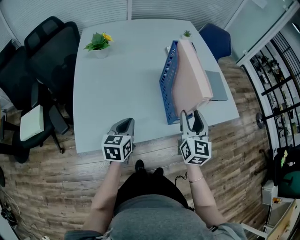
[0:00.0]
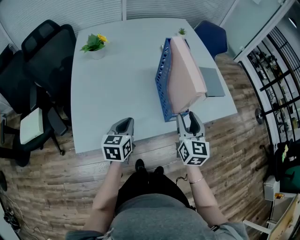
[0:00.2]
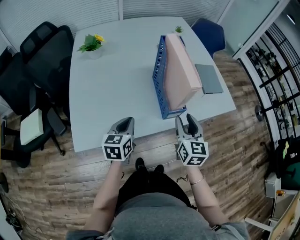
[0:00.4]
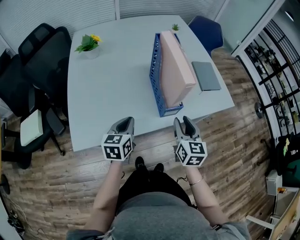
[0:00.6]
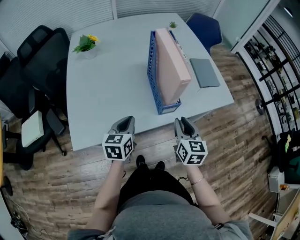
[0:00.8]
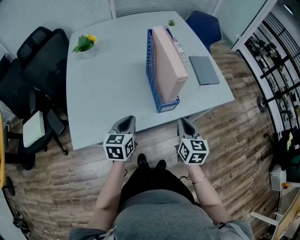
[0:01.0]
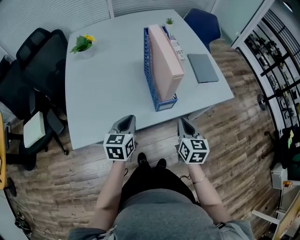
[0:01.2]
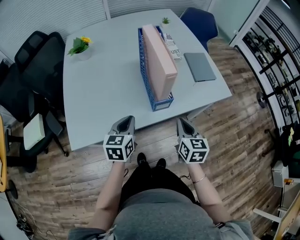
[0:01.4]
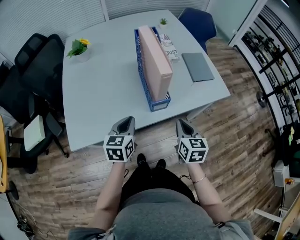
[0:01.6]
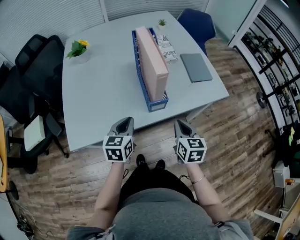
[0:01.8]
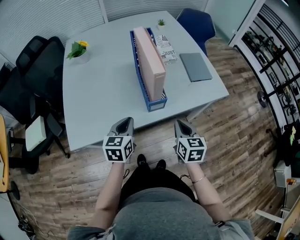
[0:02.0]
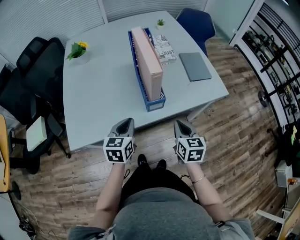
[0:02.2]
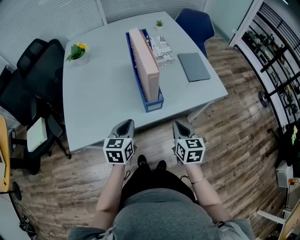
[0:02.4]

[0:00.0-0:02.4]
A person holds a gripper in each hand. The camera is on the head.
0:00.0 to 0:01.2: The left gripper moves to the right, roughly 5 cm. The right gripper shifts approximately 10 cm downward, backward and to the right, and closes.
0:01.2 to 0:02.4: There are only small adjustments of the grippers.

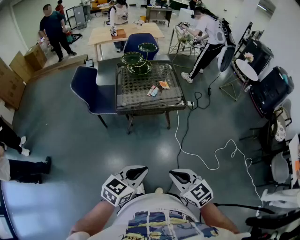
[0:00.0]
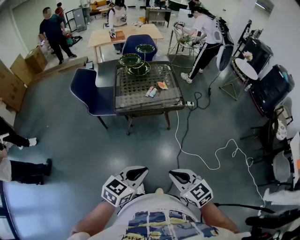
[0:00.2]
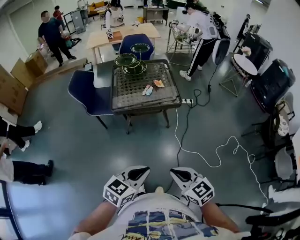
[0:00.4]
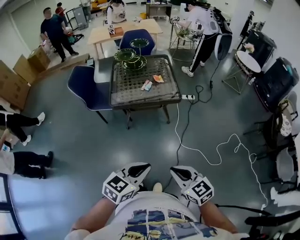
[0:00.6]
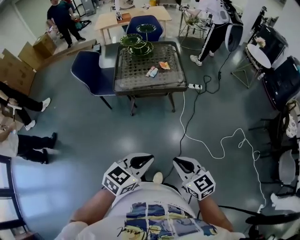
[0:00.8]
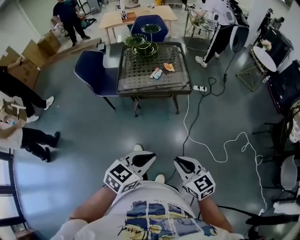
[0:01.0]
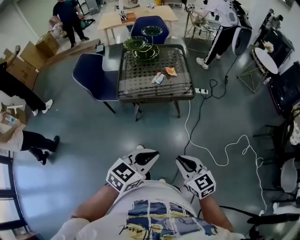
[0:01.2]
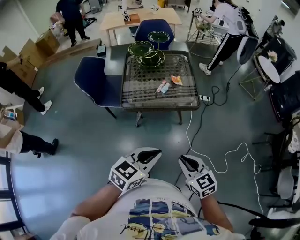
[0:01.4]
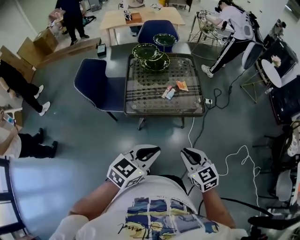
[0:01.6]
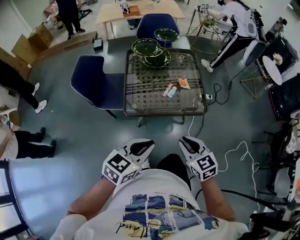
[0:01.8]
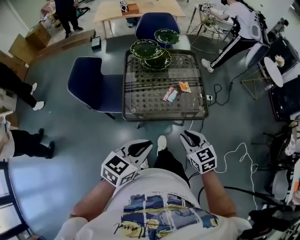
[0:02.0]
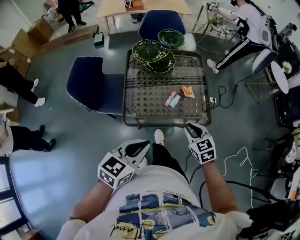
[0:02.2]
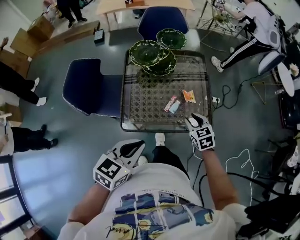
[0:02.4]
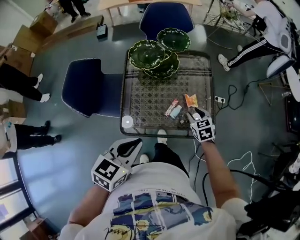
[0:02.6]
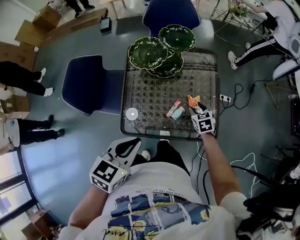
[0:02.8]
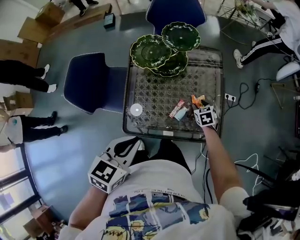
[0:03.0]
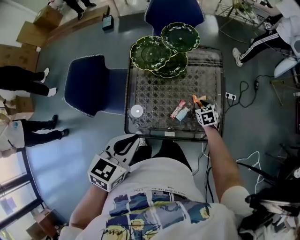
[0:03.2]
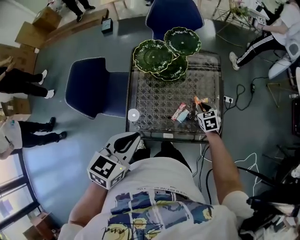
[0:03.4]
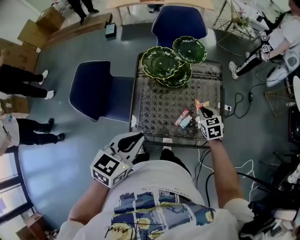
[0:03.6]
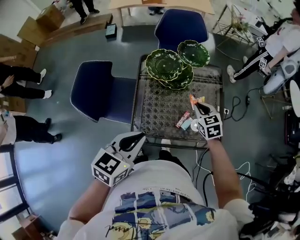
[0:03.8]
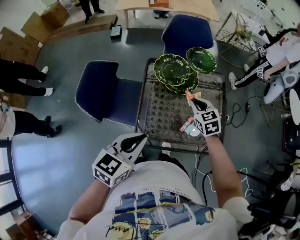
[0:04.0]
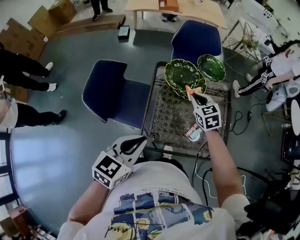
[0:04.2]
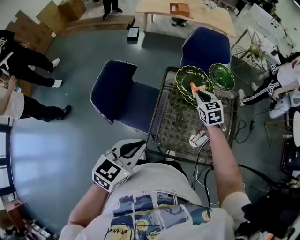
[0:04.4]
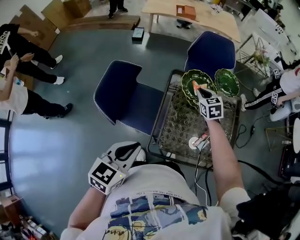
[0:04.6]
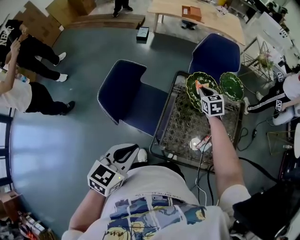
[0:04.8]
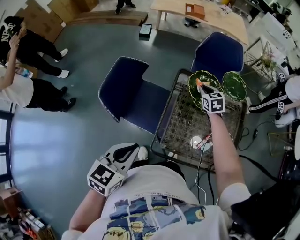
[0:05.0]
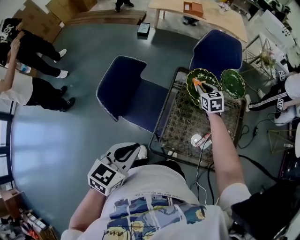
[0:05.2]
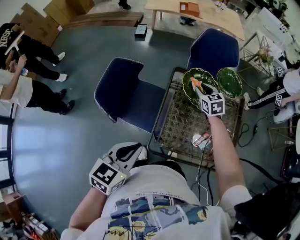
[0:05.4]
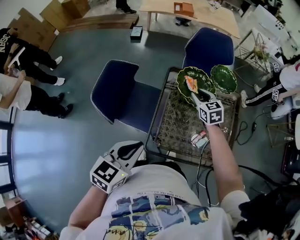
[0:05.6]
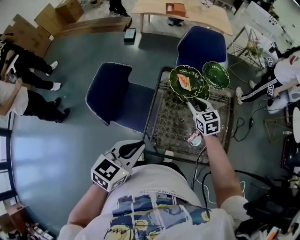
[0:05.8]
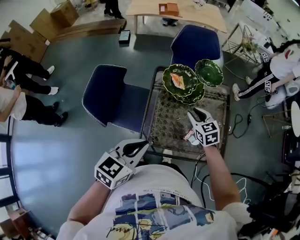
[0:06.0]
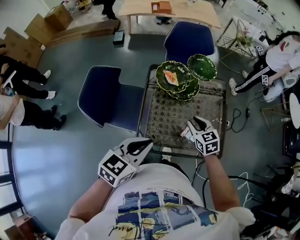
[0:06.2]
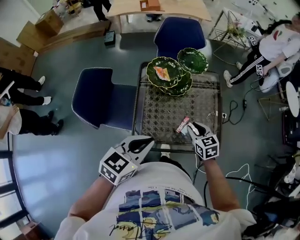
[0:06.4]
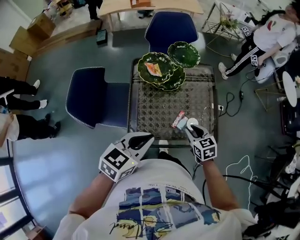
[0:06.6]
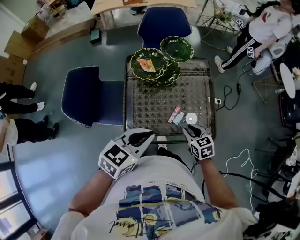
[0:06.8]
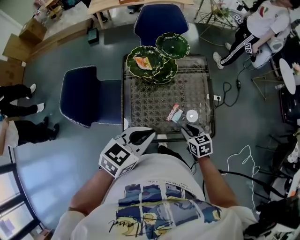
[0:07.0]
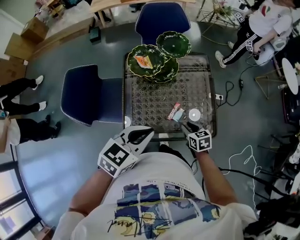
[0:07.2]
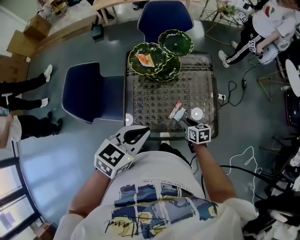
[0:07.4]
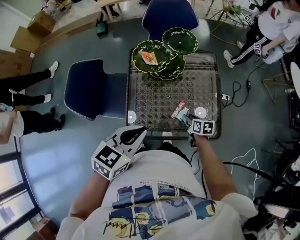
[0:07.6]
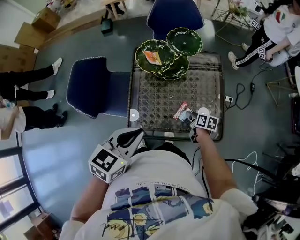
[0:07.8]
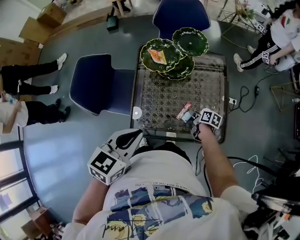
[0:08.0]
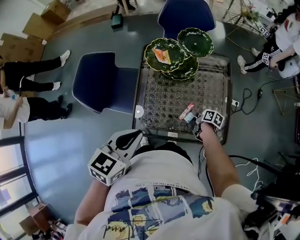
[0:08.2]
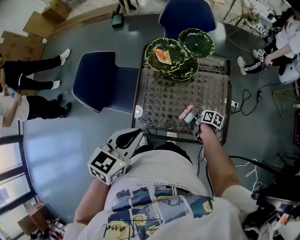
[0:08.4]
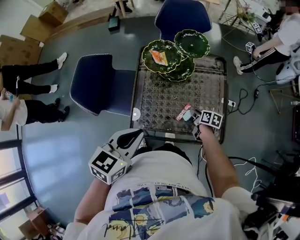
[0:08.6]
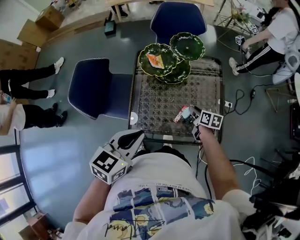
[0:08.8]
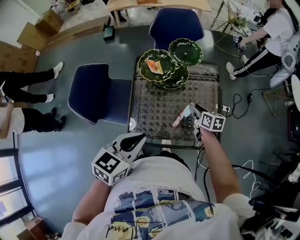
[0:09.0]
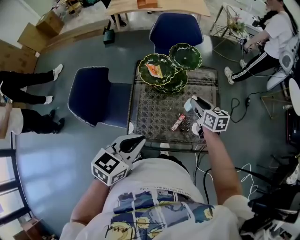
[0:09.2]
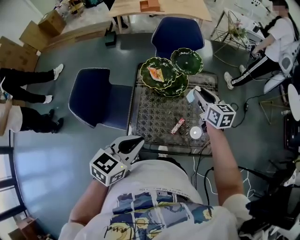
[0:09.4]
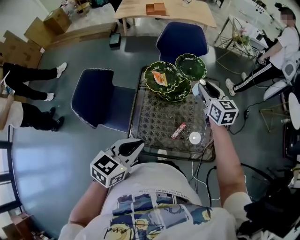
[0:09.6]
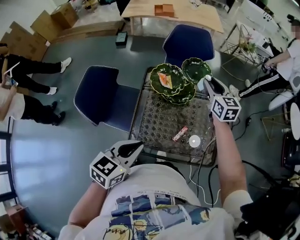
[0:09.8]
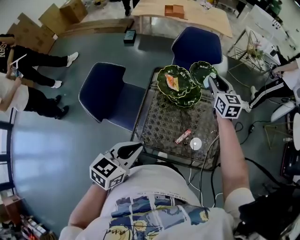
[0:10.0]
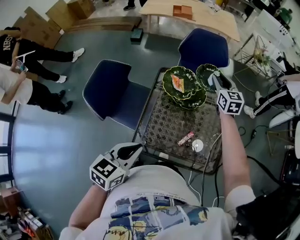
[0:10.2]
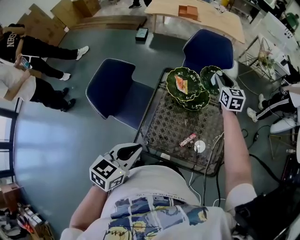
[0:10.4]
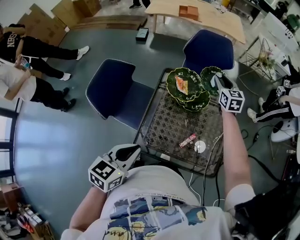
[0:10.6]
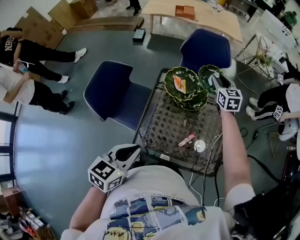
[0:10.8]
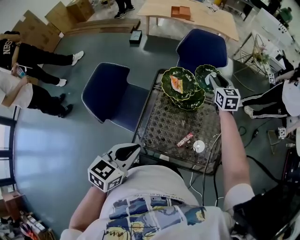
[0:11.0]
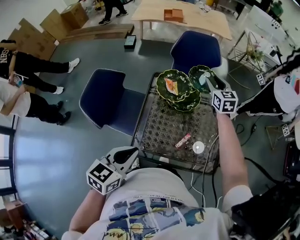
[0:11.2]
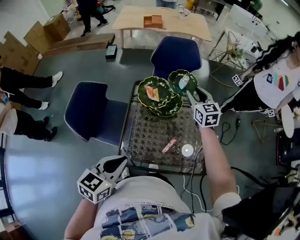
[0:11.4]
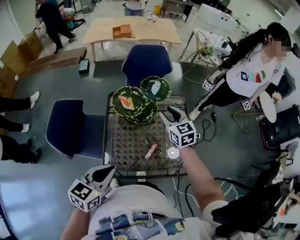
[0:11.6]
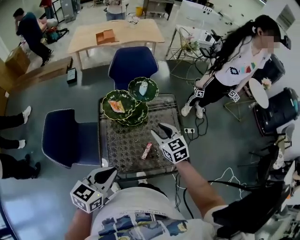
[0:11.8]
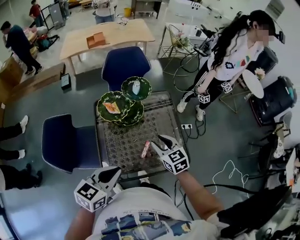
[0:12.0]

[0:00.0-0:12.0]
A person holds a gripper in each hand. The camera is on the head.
0:00.0 to 0:01.6: The grippers both shift forward by about 25 cm.
0:01.6 to 0:03.0: The right gripper goes approximately 60 cm forward and downward, changes its angle by some 30 degrees, and opens. Meanwhile the left gripper goes about 35 cm forward, and changes its angle by about 30 degrees.
0:03.0 to 0:04.4: The right gripper goes approximately 35 cm to the left and upward, changes its angle by approximately 20 degrees, and closes; the left gripper travels to the left by approximately 20 cm.
0:04.4 to 0:06.0: The right gripper goes roughly 10 cm backward and to the right. Meanwhile the left gripper moves to the right, approximately 5 cm.
0:06.0 to 0:07.6: The left gripper shifts approximately 10 cm to the right. The right gripper goes some 25 cm downward, to the right and backward, and rotates around the line of its fingers by about 40 degrees, clockwise from behind.
0:07.6 to 0:09.0: The right gripper goes approximately 15 cm forward and upward.
0:09.0 to 0:10.4: The left gripper travels to the left by approximately 5 cm; the right gripper shifts some 30 cm forward and upward, and changes its angle by some 40 degrees.
0:10.4 to 0:12.0: The left gripper travels to the right by some 5 cm, and swivels approximately 30 degrees, while the right gripper moves backward, about 30 cm.

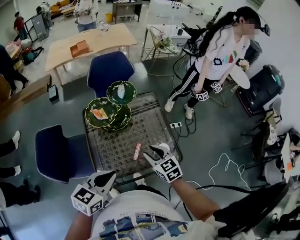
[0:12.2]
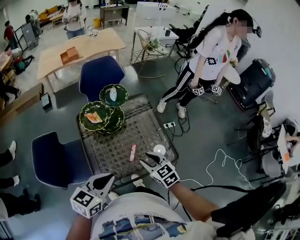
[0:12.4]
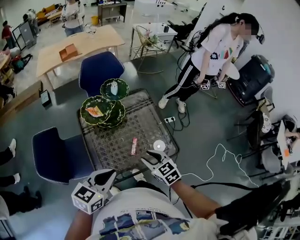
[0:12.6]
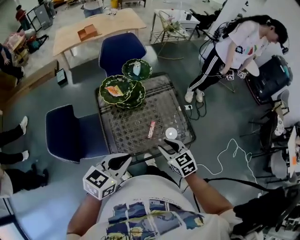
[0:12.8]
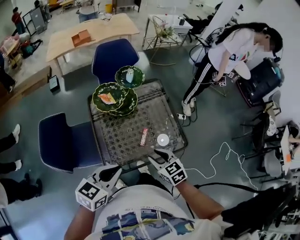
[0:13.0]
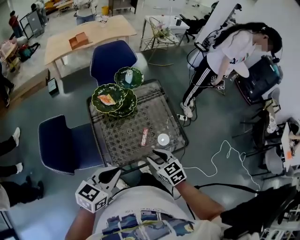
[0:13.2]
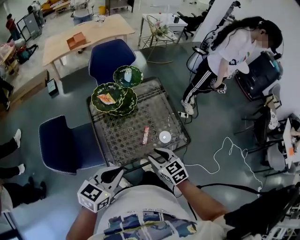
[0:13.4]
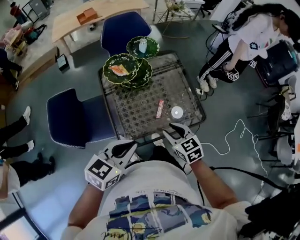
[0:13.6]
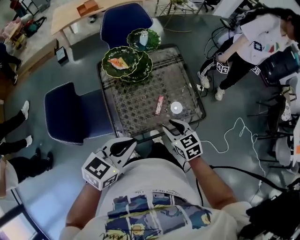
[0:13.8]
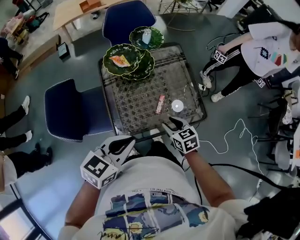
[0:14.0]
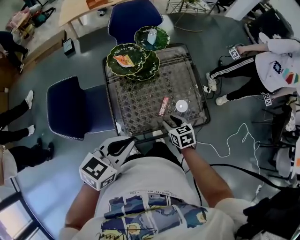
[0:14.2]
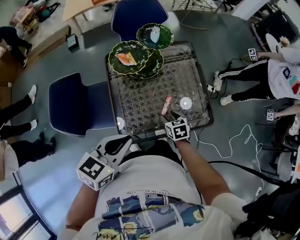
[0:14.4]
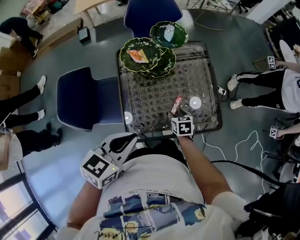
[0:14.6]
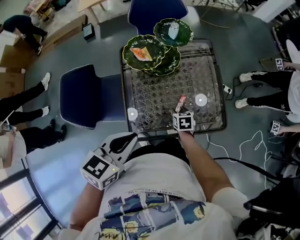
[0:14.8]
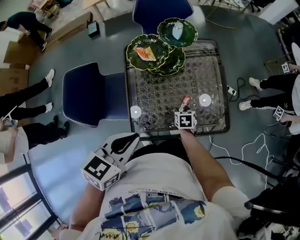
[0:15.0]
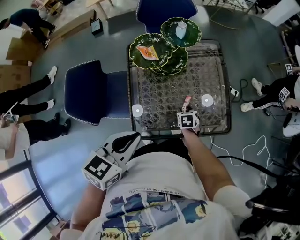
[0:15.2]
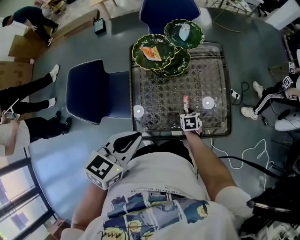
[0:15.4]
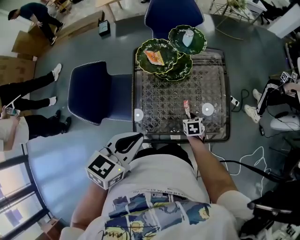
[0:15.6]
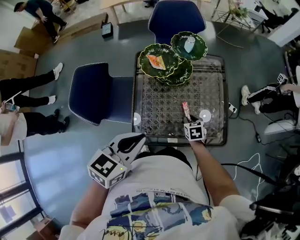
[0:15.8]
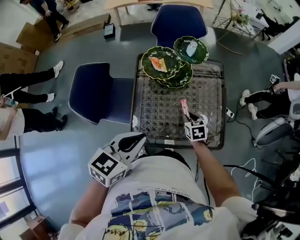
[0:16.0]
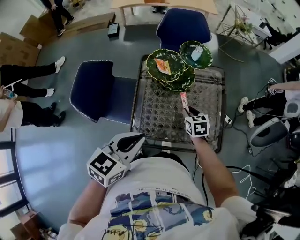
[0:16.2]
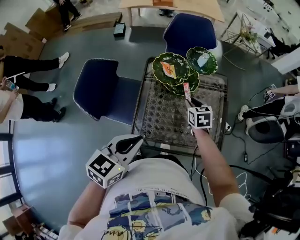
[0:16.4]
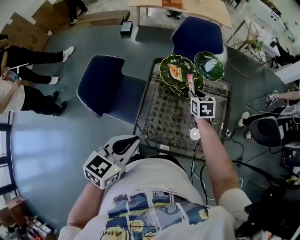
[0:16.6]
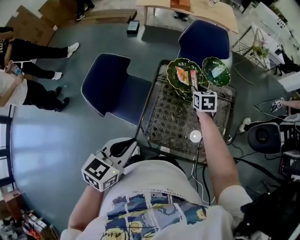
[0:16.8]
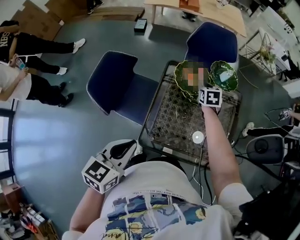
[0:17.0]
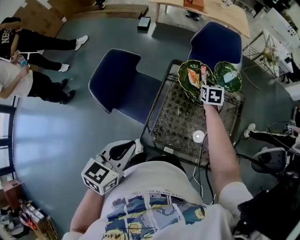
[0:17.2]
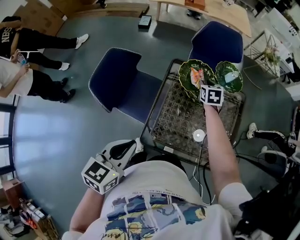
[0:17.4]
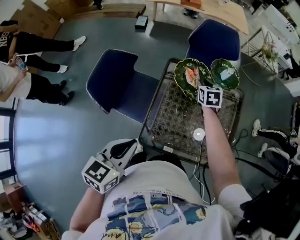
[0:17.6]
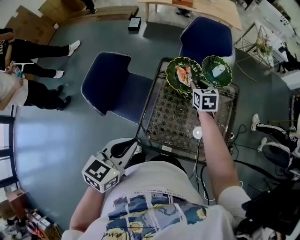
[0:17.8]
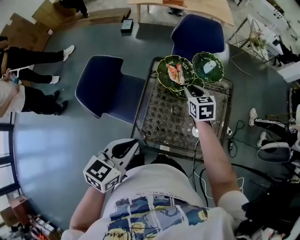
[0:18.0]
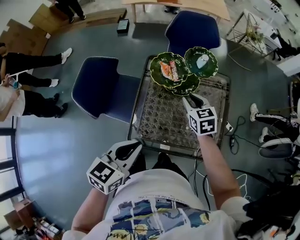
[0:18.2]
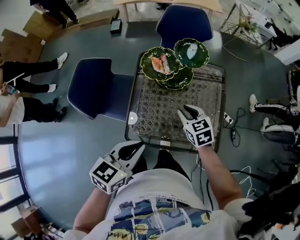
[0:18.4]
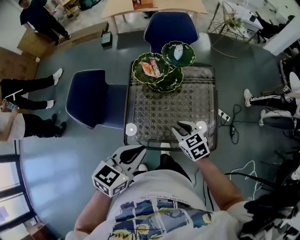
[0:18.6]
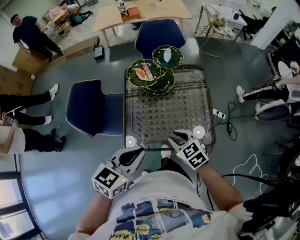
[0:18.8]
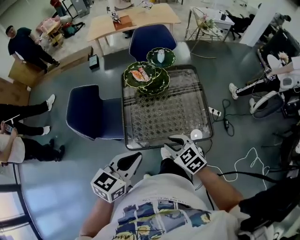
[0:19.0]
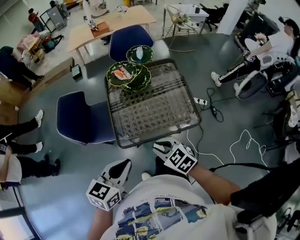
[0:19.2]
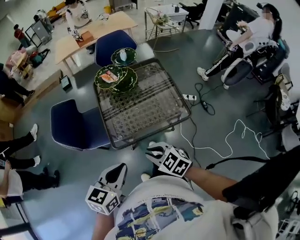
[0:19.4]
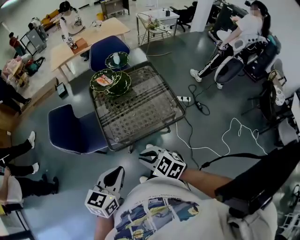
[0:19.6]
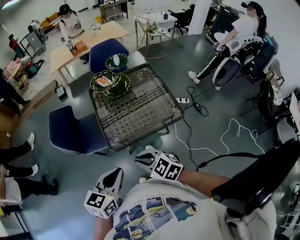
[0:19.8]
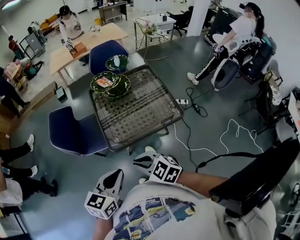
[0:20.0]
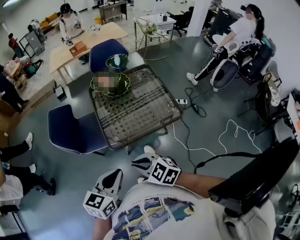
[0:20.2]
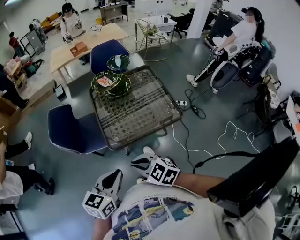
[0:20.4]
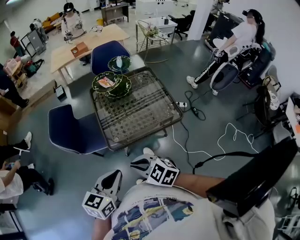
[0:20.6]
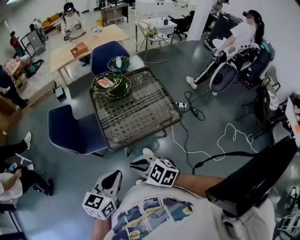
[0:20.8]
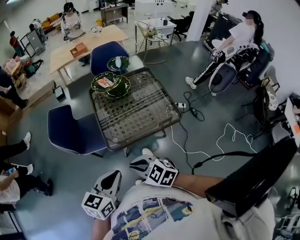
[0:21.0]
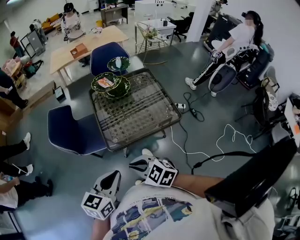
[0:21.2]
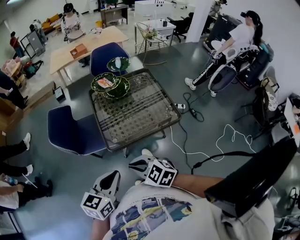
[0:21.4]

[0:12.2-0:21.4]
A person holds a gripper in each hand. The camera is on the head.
0:12.2 to 0:13.8: The left gripper shifts by roughly 5 cm; the right gripper heads backward and downward, covering approximately 10 cm.
0:13.8 to 0:15.2: The right gripper moves downward and forward, approximately 25 cm, and swivels about 30 degrees. Meanwhile the left gripper shifts approximately 5 cm forward, and swivels approximately 20 degrees.
0:15.2 to 0:16.8: The right gripper goes roughly 30 cm upward, forward and to the left, changes its angle by some 30 degrees, and closes its fingers, while the left gripper shifts approximately 10 cm to the left, and changes its angle by some 20 degrees.
0:16.8 to 0:18.4: The left gripper heads to the right, covering some 15 cm, while the right gripper travels backward and to the right by approximately 15 cm.
0:18.4 to 0:19.8: The left gripper travels backward by approximately 25 cm, while the right gripper travels backward by roughly 40 cm.
0:19.8 to 0:21.4: The right gripper ends up roughly 5 cm from where it was.
